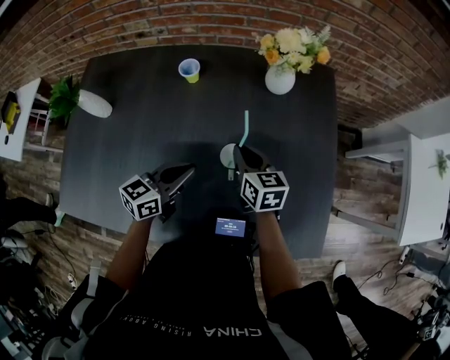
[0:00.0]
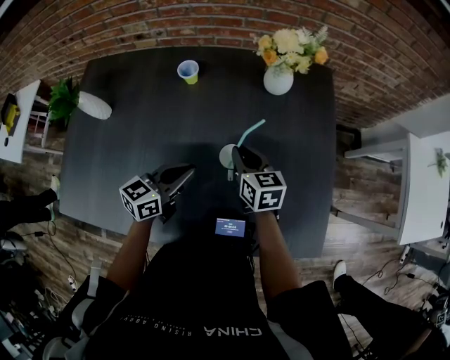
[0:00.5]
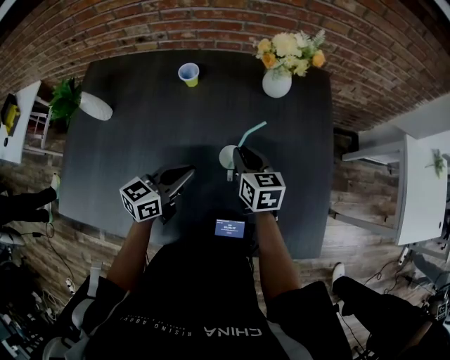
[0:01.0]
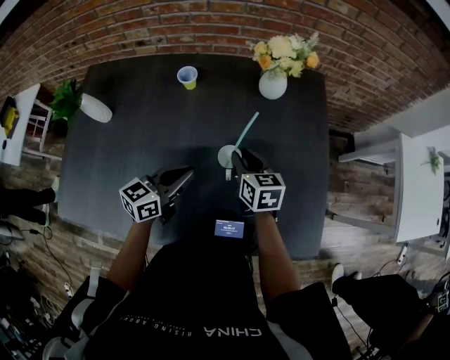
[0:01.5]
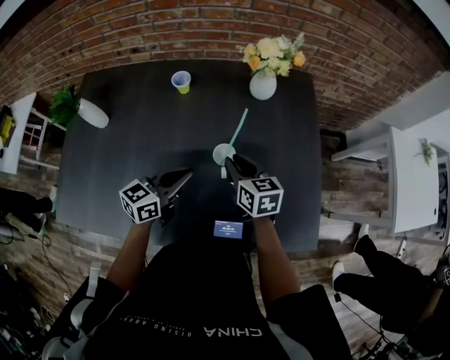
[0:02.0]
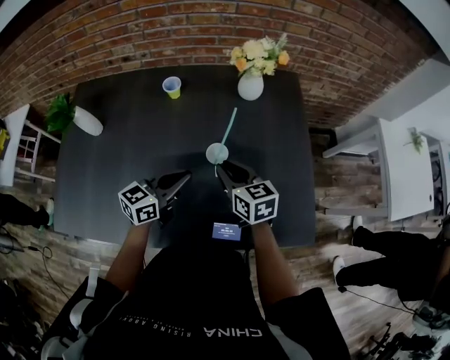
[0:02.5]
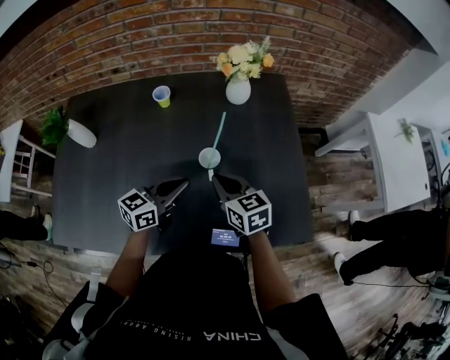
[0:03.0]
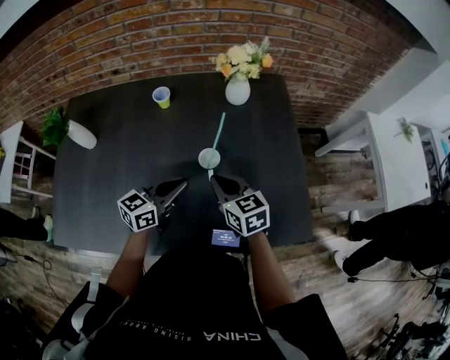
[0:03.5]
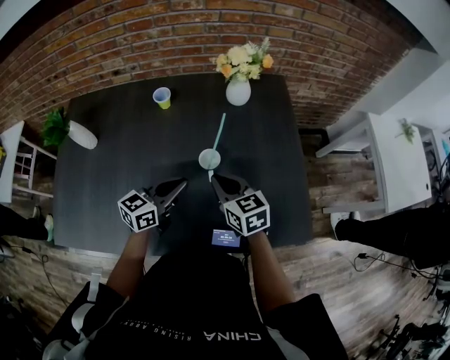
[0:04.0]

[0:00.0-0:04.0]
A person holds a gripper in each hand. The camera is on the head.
0:00.0 to 0:02.0: The right gripper moves roughly 5 cm.
0:02.0 to 0:04.0: The right gripper moves backward, roughly 5 cm.

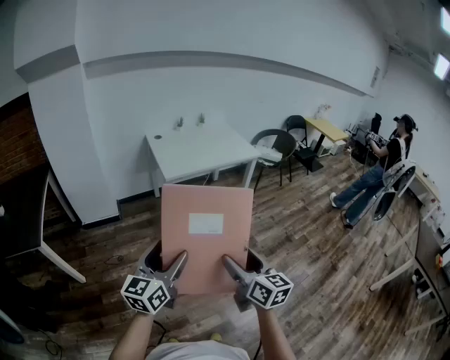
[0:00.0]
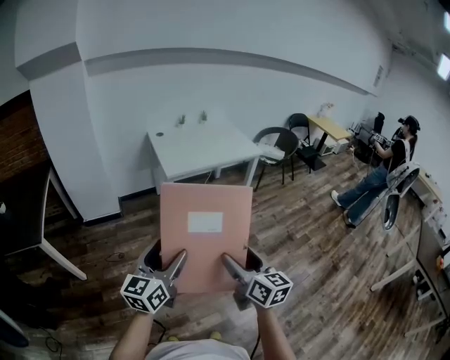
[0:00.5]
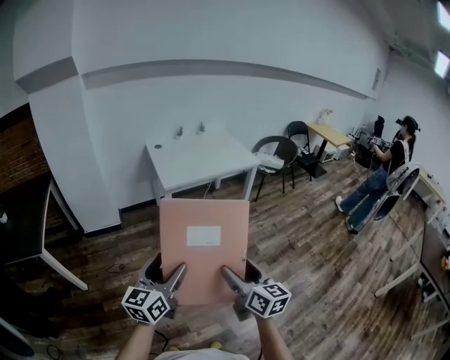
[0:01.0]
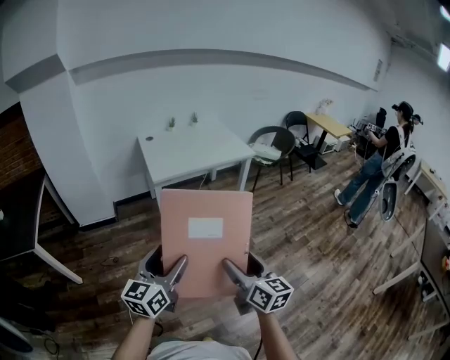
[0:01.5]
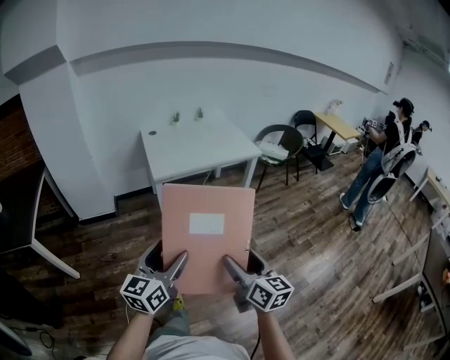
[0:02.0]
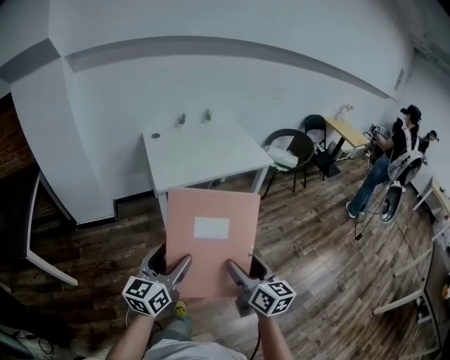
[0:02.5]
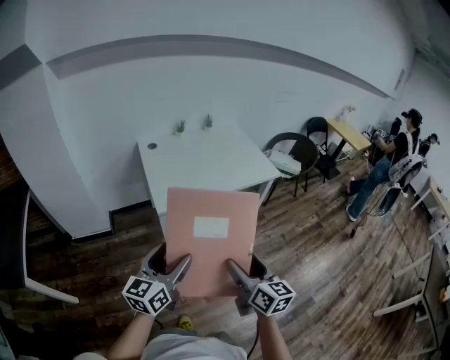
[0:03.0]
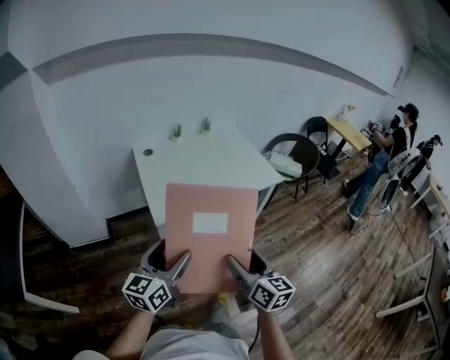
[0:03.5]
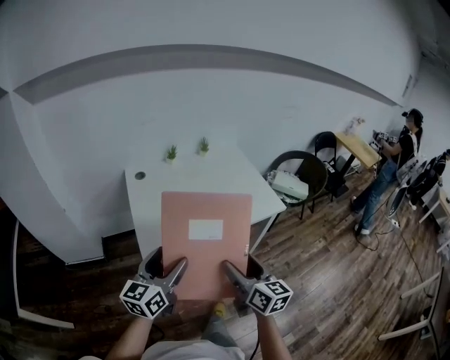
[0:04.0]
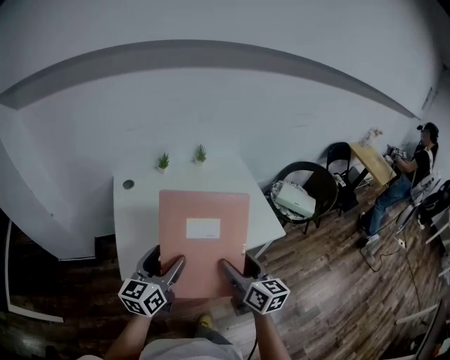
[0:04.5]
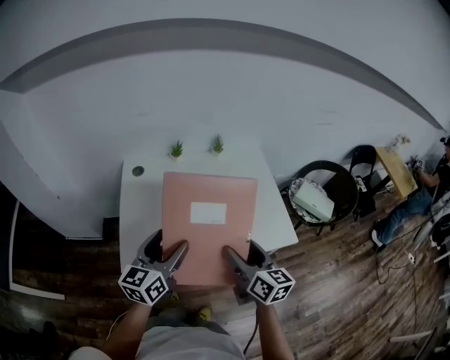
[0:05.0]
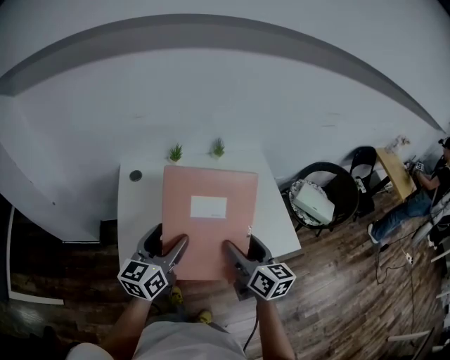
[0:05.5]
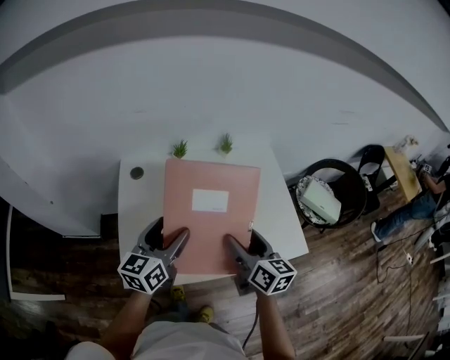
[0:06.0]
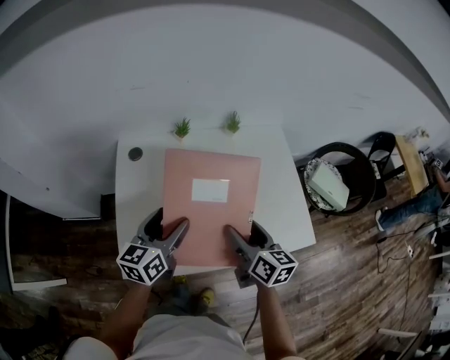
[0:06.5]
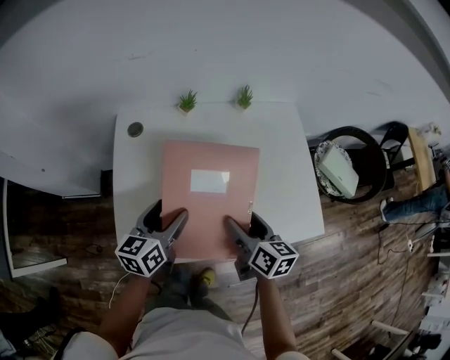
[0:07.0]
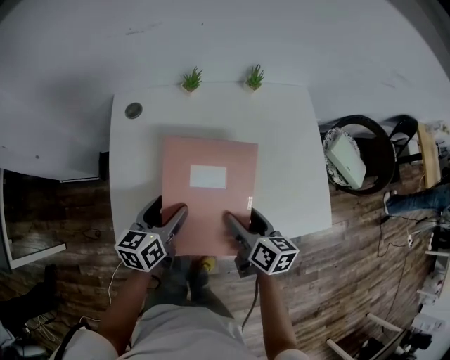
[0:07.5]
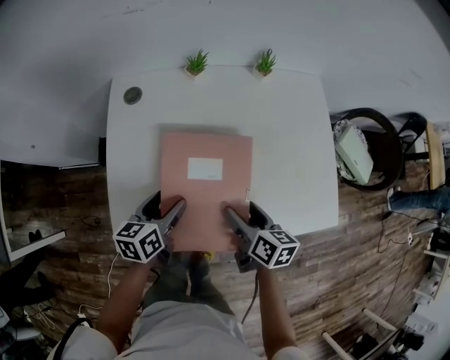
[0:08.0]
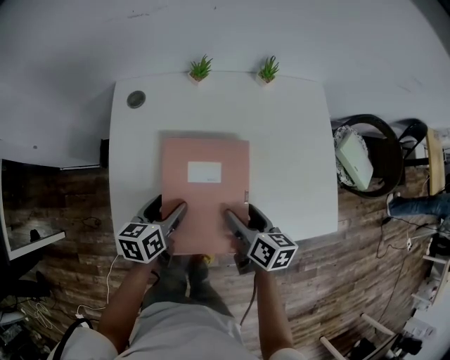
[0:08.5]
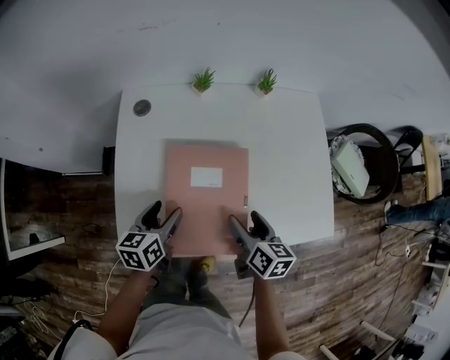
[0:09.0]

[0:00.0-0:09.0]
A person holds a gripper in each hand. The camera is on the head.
0:00.0 to 0:02.0: Both grippers travel together to the right and forward, roughly 15 cm.
0:02.0 to 0:04.5: Both grippers are carried forward, some 70 cm.
0:04.5 to 0:07.0: The two grippers go some 25 cm forward and downward. The left gripper turns by roughly 20 degrees. Meanwhile the right gripper rotates about 20 degrees.
0:07.0 to 0:09.0: Both grippers move downward, some 10 cm.

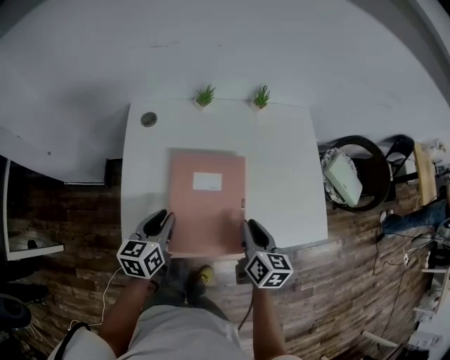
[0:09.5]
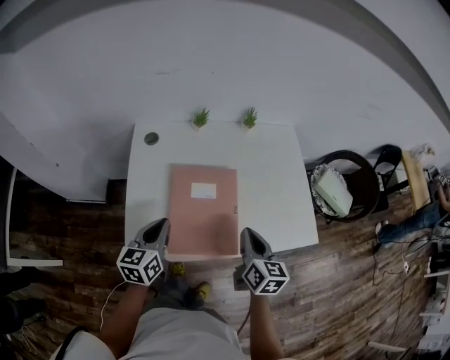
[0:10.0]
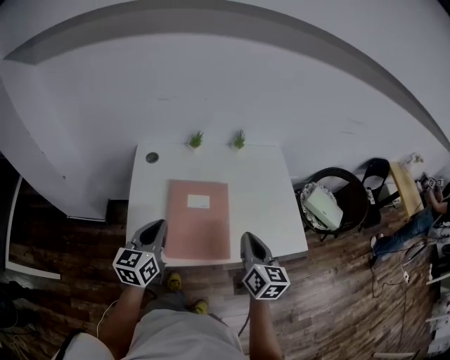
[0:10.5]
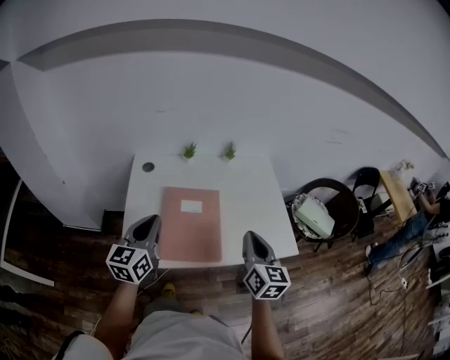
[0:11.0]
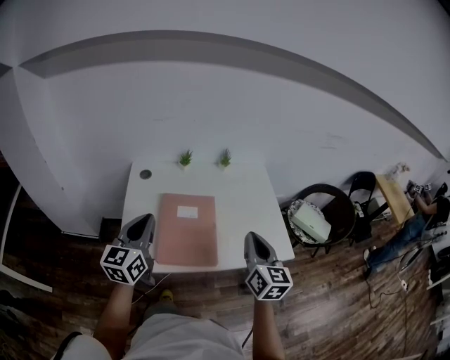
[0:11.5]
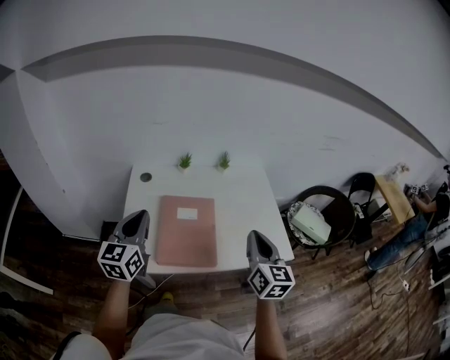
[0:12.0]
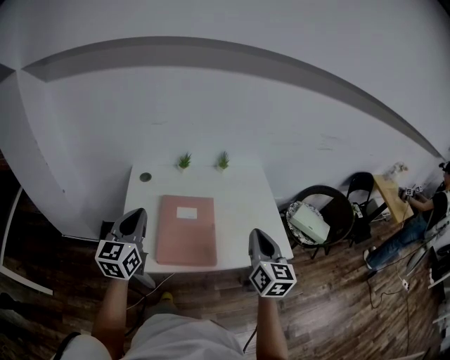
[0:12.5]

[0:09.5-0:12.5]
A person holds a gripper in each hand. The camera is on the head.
0:09.5 to 0:11.0: The grippers both shift upward and backward by roughly 20 cm. The left gripper swivels approximately 30 degrees. The right gripper swivels some 20 degrees.
0:11.0 to 0:12.5: The right gripper shifts by approximately 5 cm. Meanwhile the left gripper goes about 5 cm upward.

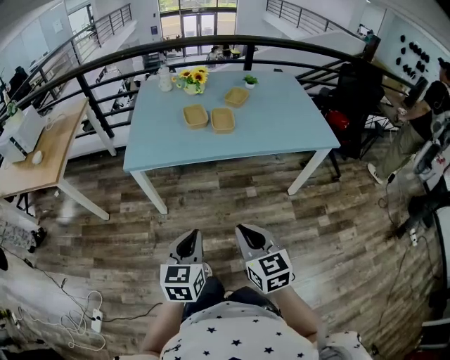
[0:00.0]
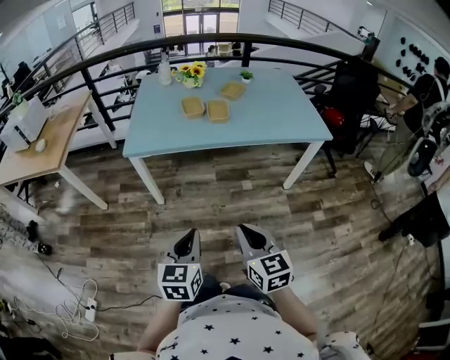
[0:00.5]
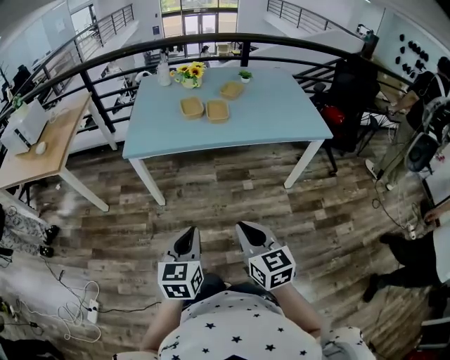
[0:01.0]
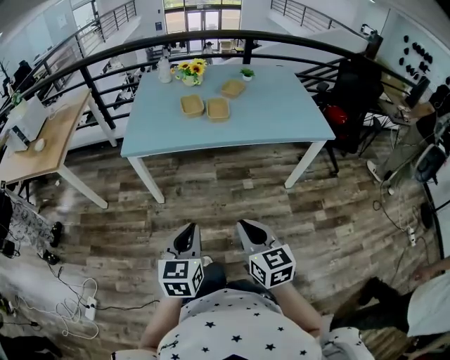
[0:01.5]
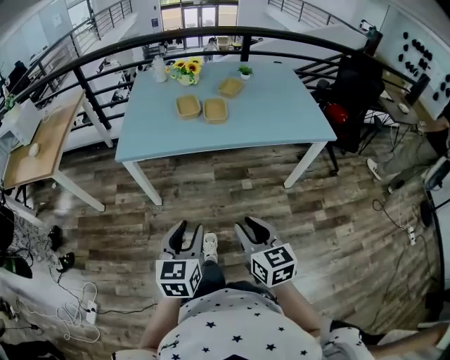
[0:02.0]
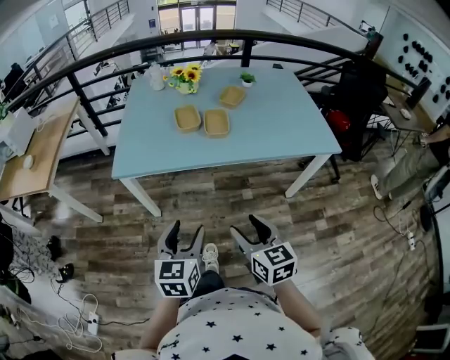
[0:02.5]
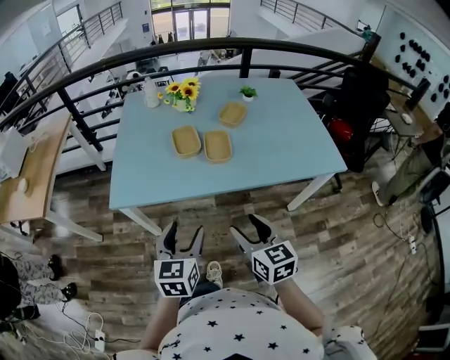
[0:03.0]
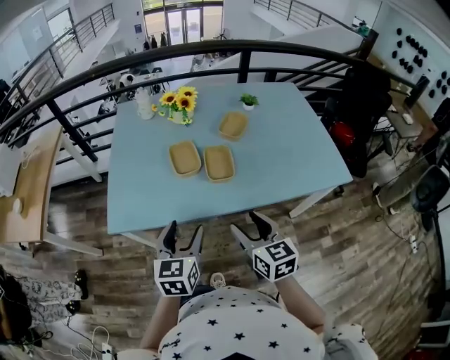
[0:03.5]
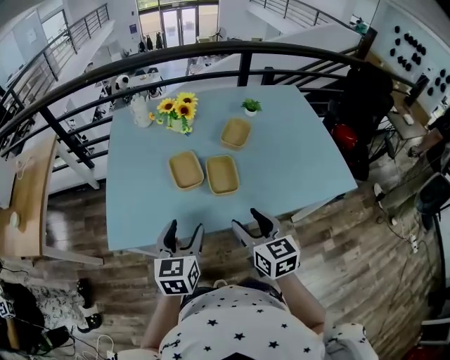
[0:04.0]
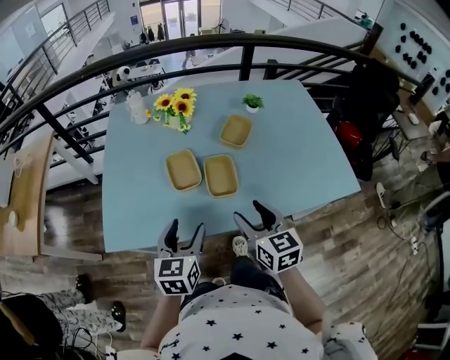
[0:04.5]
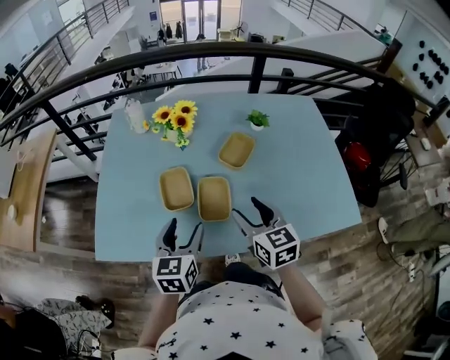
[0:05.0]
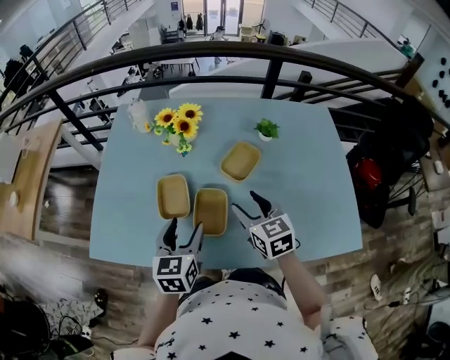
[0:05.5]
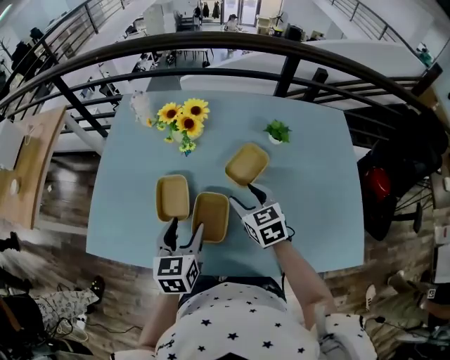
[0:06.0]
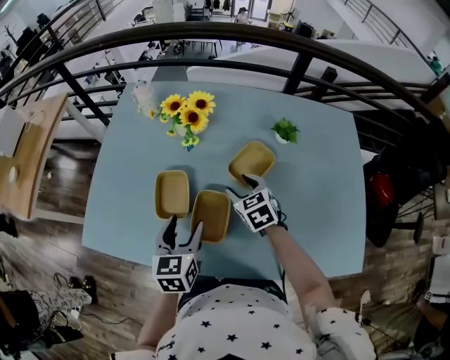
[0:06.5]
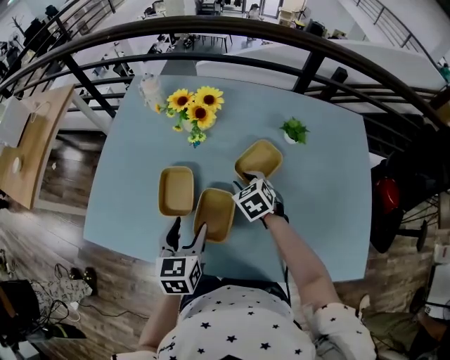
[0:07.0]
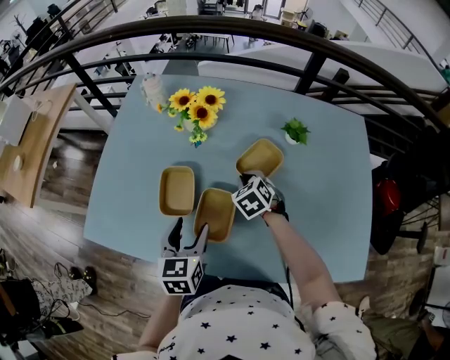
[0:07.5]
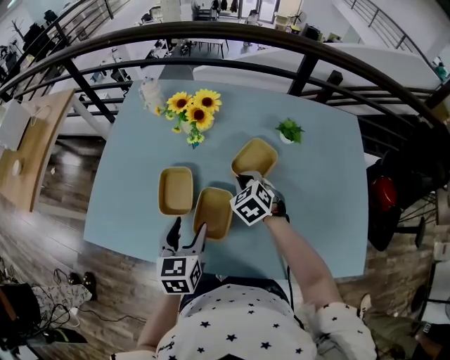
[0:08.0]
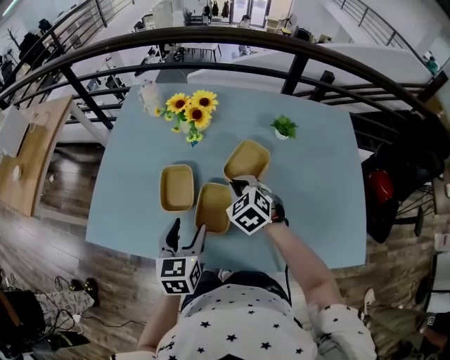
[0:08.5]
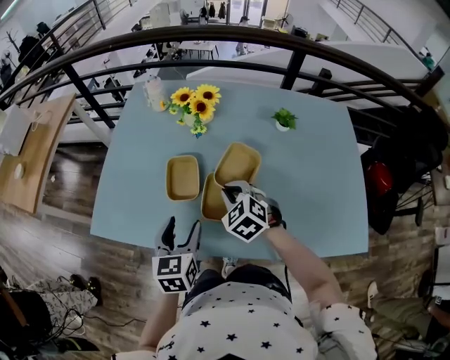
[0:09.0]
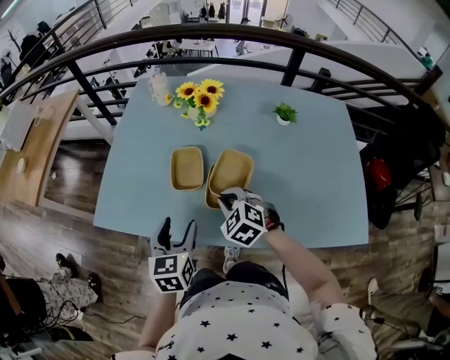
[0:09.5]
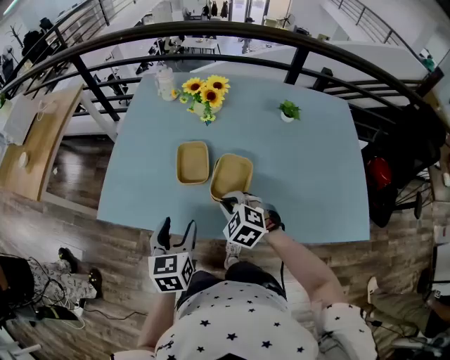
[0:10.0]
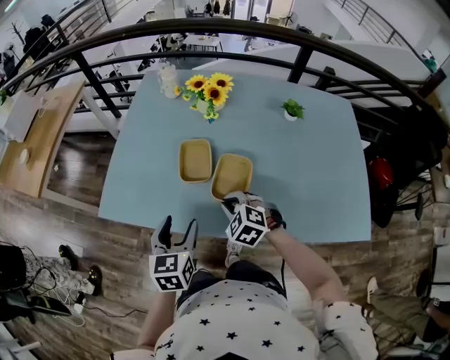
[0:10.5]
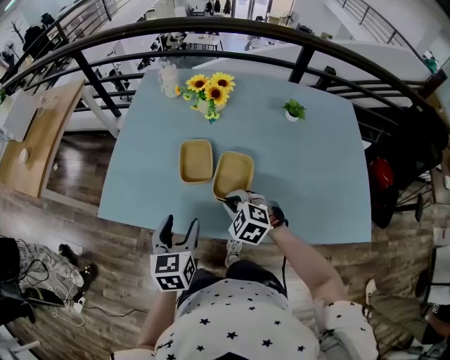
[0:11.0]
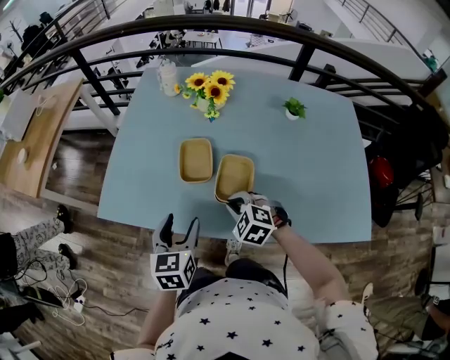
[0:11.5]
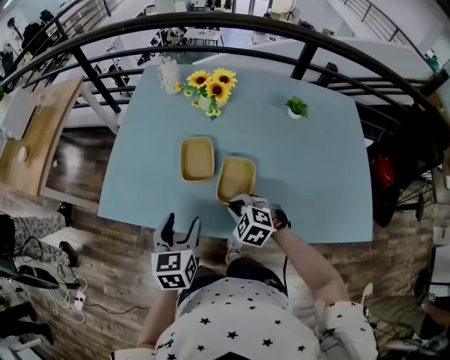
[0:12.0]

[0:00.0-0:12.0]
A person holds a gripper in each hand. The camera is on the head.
0:00.0 to 0:02.0: The left gripper travels backward and back again, about 10 cm each way, and opens up. Meanwhile the right gripper goes backward and returns, roughly 10 cm each way, and opens.
0:02.0 to 0:04.0: The grippers both shift forward by some 40 cm. The right gripper opens its fingers, while the left gripper opens up.
0:04.0 to 0:06.0: The left gripper moves forward and to the right, some 20 cm; the right gripper travels forward by some 30 cm, and turns by some 30 degrees.
0:06.0 to 0:08.0: The right gripper travels forward and downward by about 10 cm, changes its angle by roughly 30 degrees, and closes up.
0:08.0 to 0:10.0: The right gripper goes approximately 25 cm backward and to the left. Meanwhile the left gripper moves to the left and backward, about 15 cm.
0:10.0 to 0:12.0: The grippers make only small movements.
